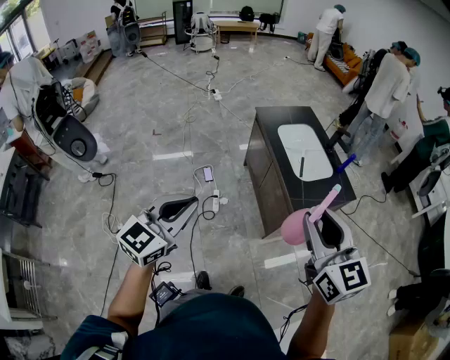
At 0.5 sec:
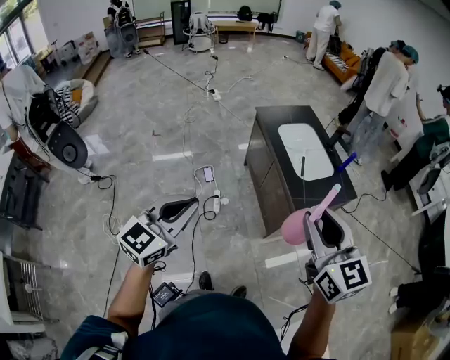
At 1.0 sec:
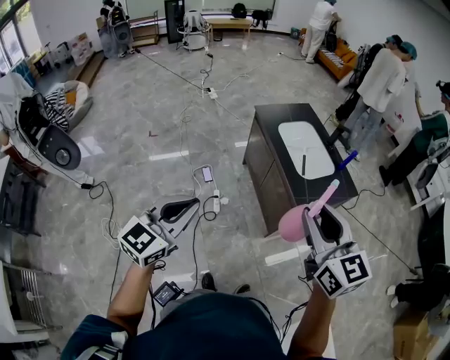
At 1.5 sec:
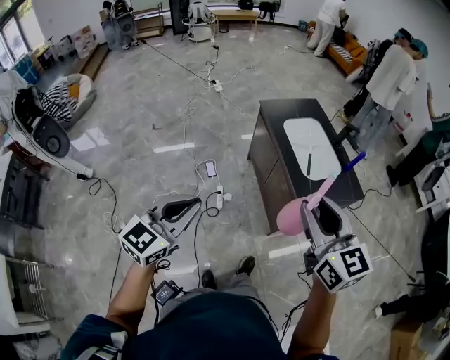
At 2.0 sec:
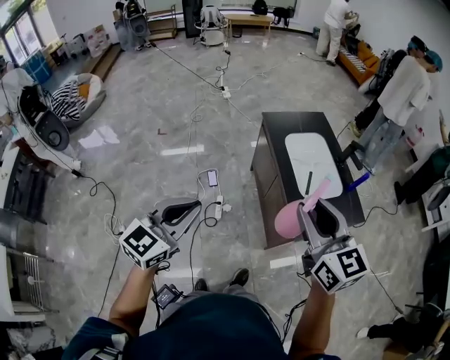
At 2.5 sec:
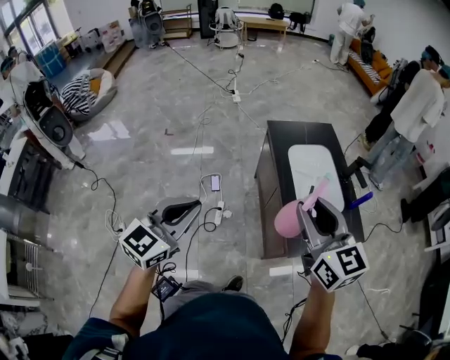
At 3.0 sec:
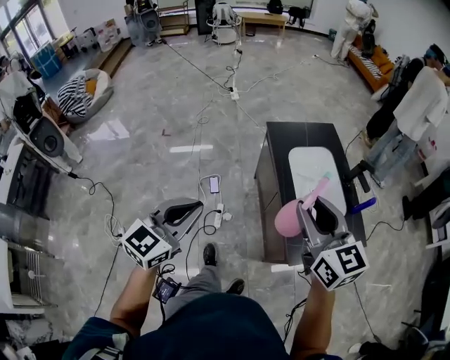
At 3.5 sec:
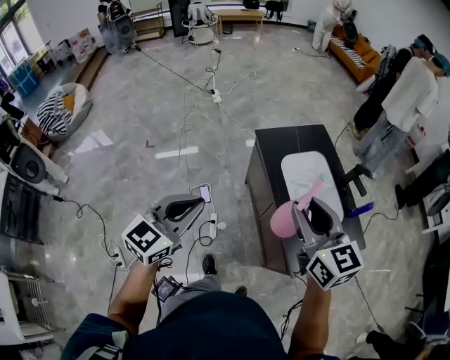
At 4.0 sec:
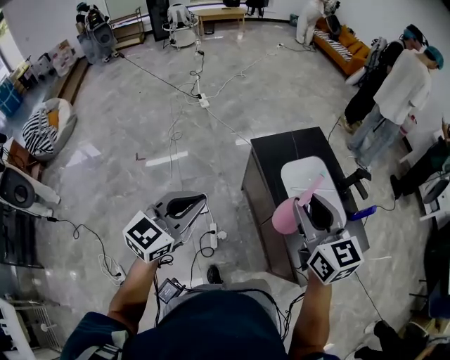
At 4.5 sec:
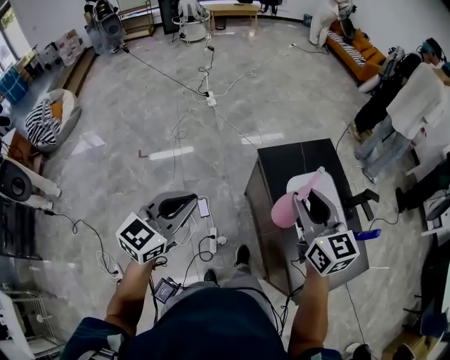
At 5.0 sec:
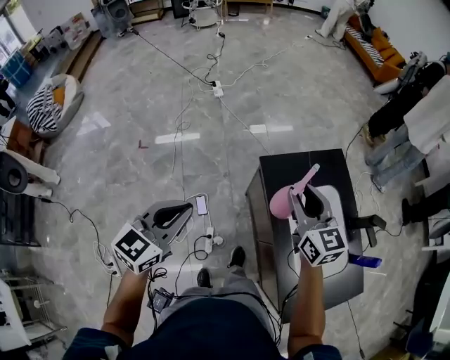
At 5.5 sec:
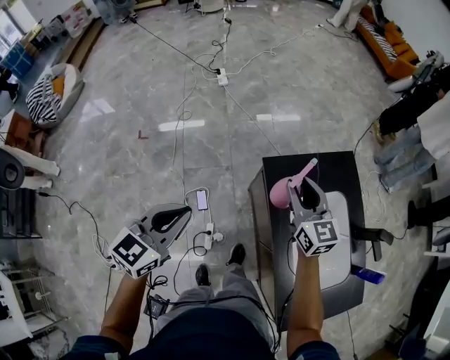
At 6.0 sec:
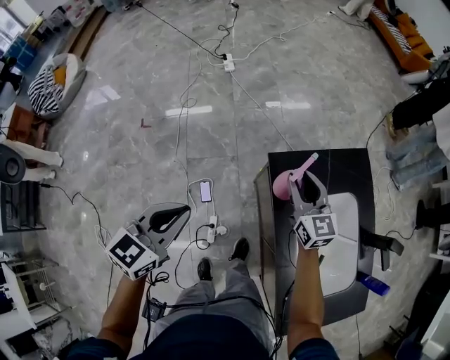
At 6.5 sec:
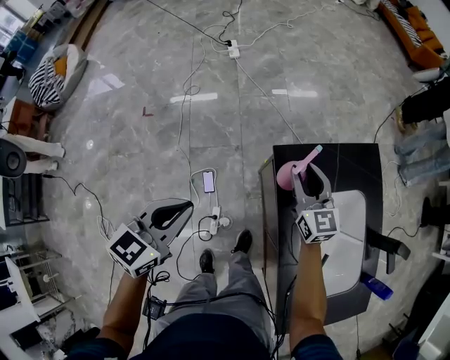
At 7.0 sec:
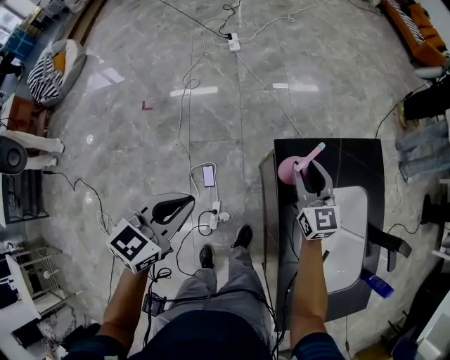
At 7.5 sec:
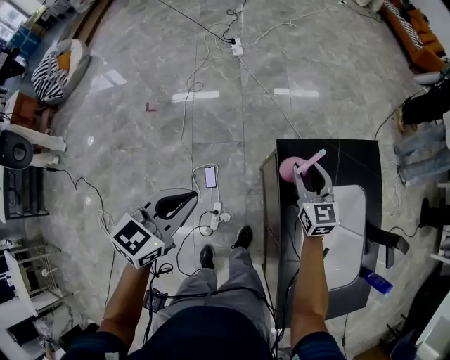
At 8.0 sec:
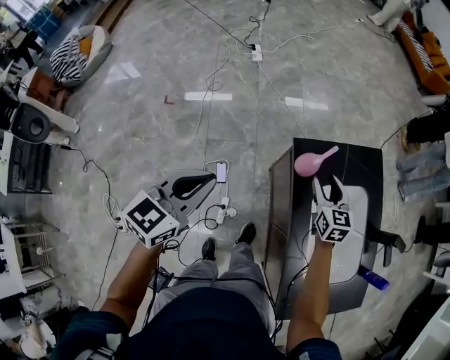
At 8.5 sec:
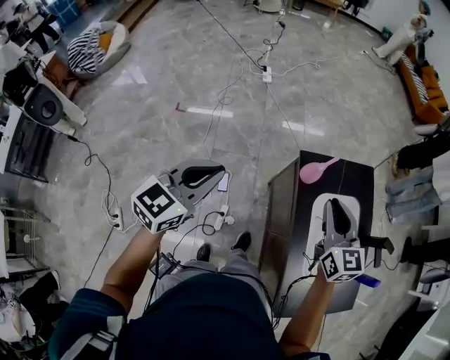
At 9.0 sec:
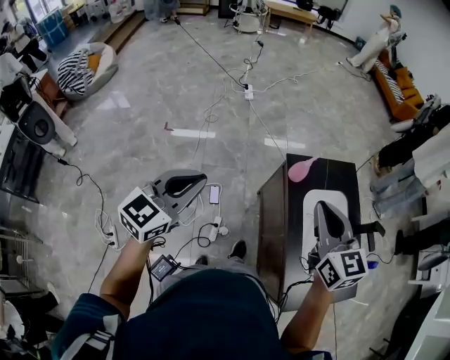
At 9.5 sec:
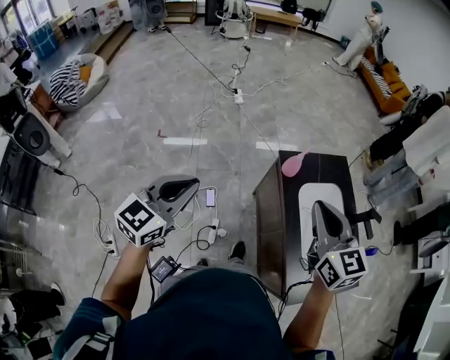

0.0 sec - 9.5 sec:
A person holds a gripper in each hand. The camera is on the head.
0.0 sec - 2.0 sec: The two grippers go about 15 cm forward.
2.0 sec - 4.0 sec: The two grippers go some 35 cm forward.
4.0 sec - 5.5 sec: The right gripper heads forward and downward, covering approximately 40 cm. The left gripper heads forward and downward, covering about 25 cm.
5.5 sec - 7.5 sec: The right gripper heads downward, covering some 15 cm. Meanwhile the left gripper travels downward by roughly 5 cm.
7.5 sec - 9.5 sec: The left gripper is displaced backward and upward by some 30 cm. The right gripper goes roughly 50 cm upward and backward, and closes up.

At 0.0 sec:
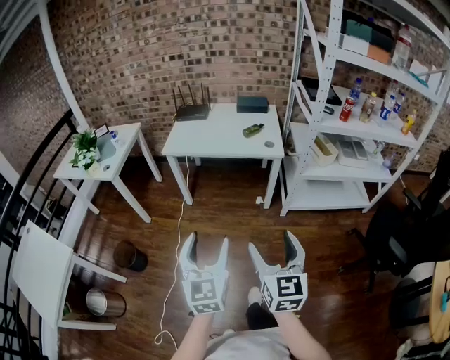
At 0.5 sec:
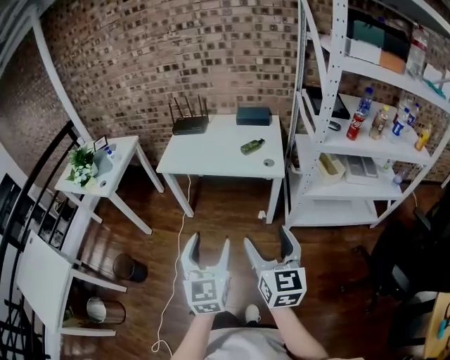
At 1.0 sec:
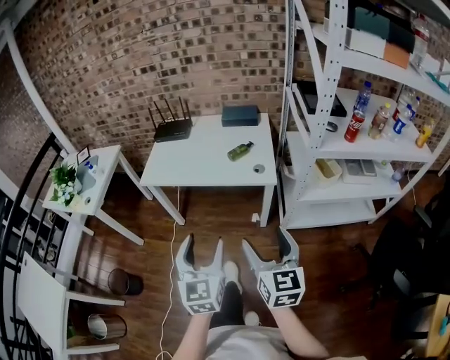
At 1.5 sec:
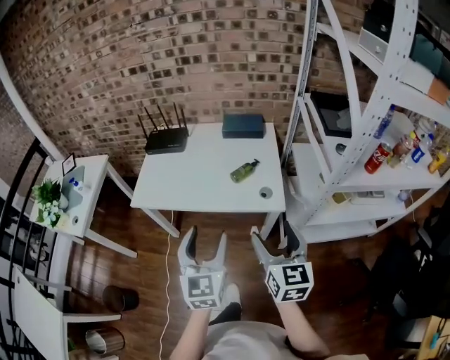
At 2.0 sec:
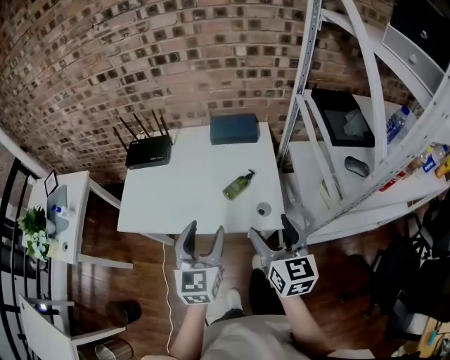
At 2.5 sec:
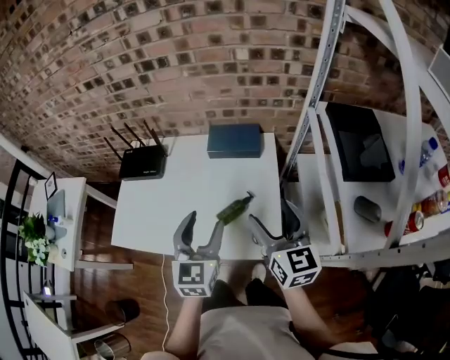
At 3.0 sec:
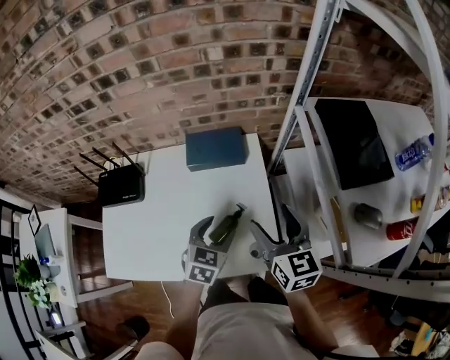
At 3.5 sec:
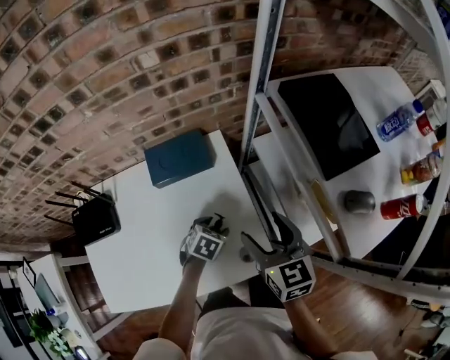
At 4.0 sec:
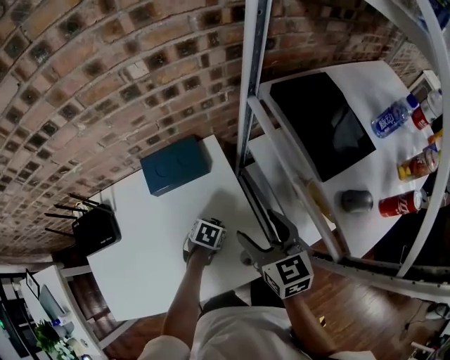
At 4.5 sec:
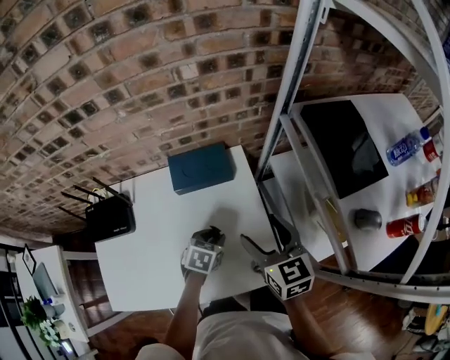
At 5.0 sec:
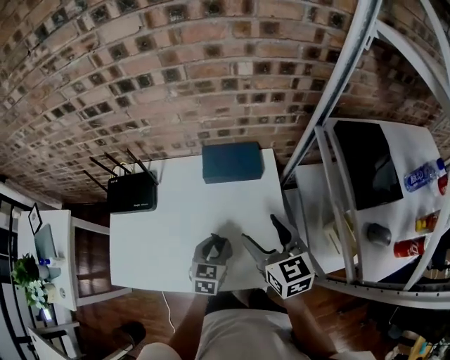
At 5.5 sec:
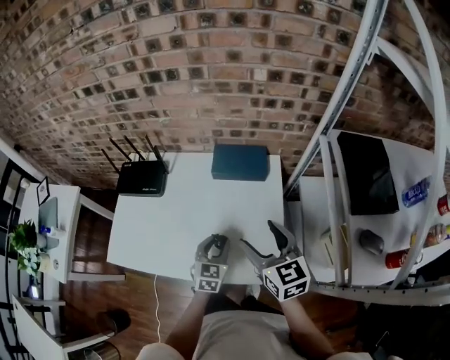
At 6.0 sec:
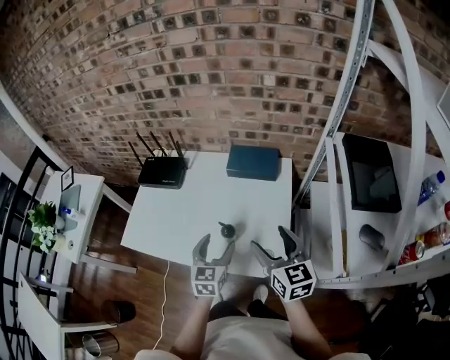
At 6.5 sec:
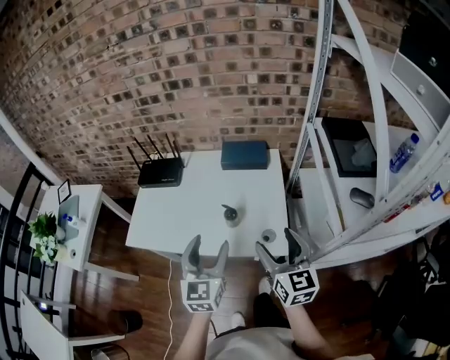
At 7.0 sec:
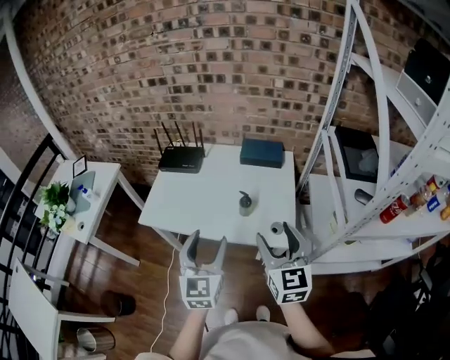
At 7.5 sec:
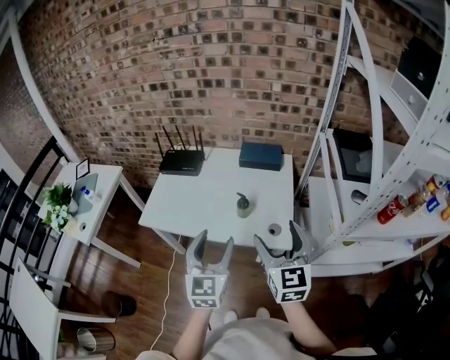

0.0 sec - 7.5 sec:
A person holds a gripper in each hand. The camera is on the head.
0.0 sec - 2.0 sec: Both grippers are carried forward, approximately 60 cm.
2.0 sec - 4.0 sec: The left gripper is displaced downward by approximately 30 cm, tilts its fingers some 60 degrees downward, and closes its fingers. Meanwhile the right gripper moves approximately 25 cm.
4.0 sec - 5.5 sec: The right gripper moves about 10 cm, and rotates some 30 degrees. The left gripper shifts by approximately 15 cm, and angles its fingers upward, by some 40 degrees.
5.5 sec - 7.5 sec: The left gripper shifts about 35 cm backward and upward, rotates some 30 degrees, and opens. Meanwhile the right gripper travels backward by some 25 cm.

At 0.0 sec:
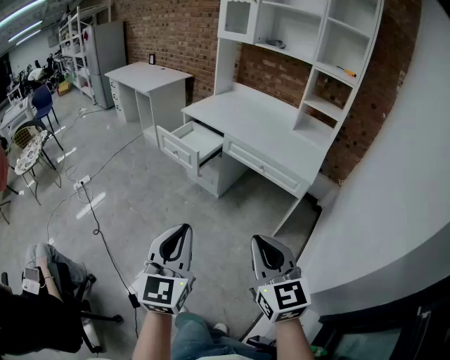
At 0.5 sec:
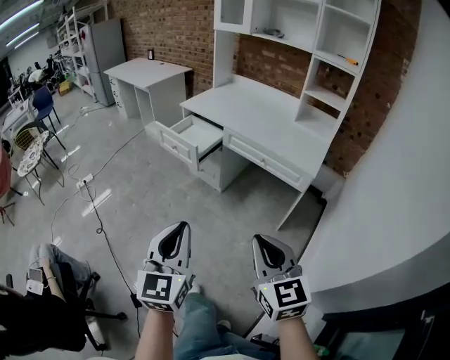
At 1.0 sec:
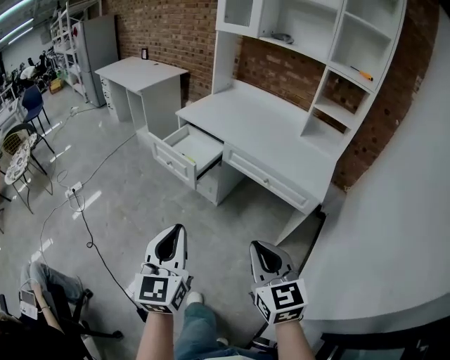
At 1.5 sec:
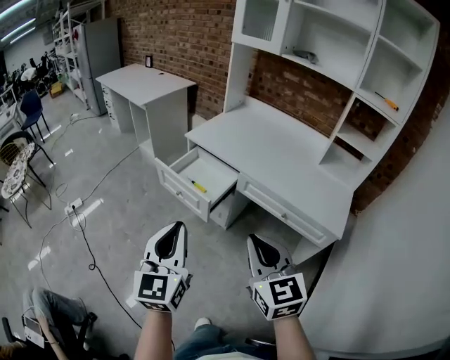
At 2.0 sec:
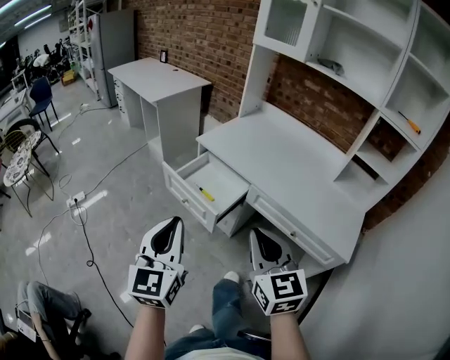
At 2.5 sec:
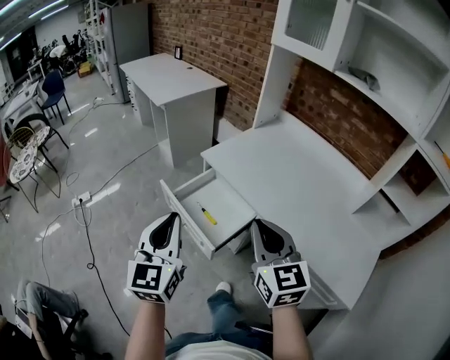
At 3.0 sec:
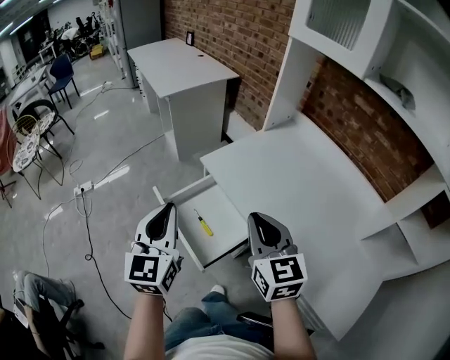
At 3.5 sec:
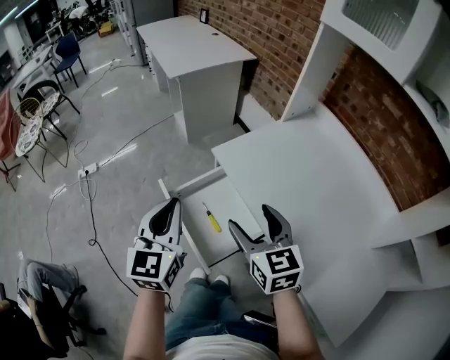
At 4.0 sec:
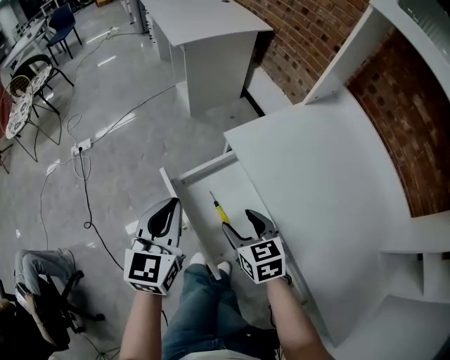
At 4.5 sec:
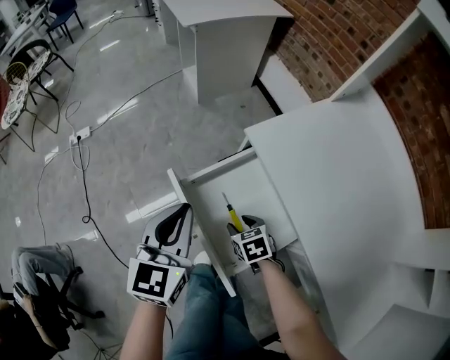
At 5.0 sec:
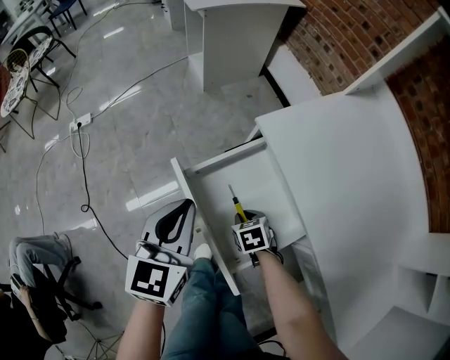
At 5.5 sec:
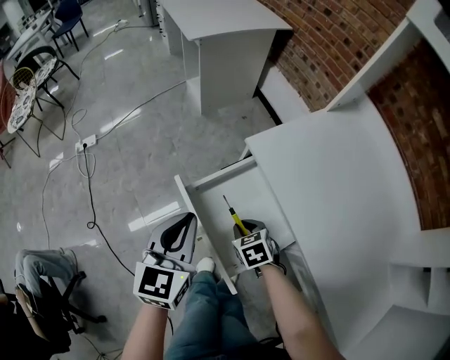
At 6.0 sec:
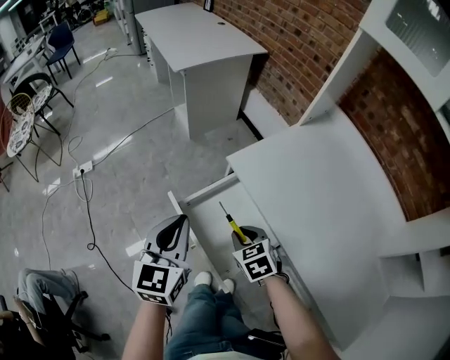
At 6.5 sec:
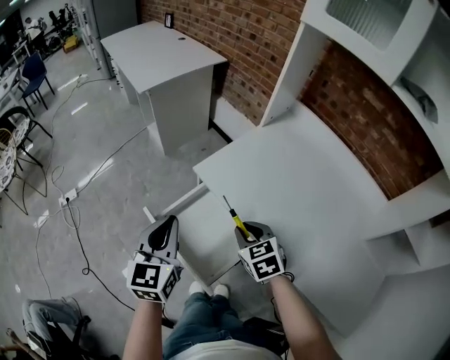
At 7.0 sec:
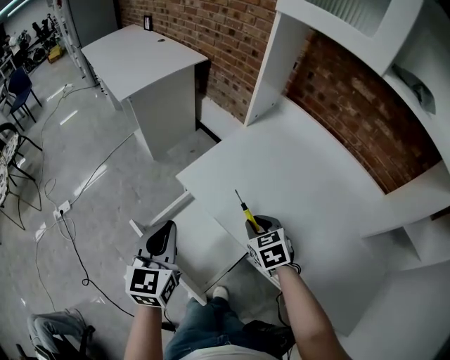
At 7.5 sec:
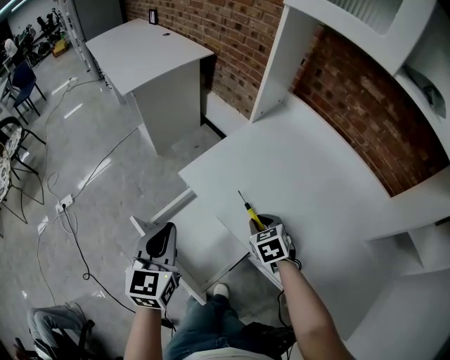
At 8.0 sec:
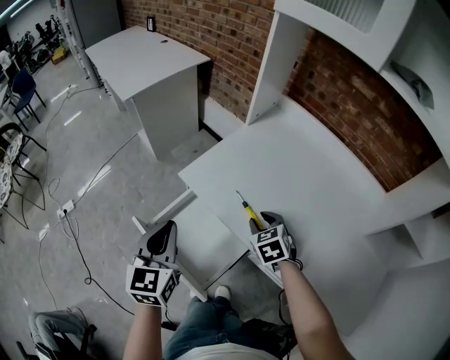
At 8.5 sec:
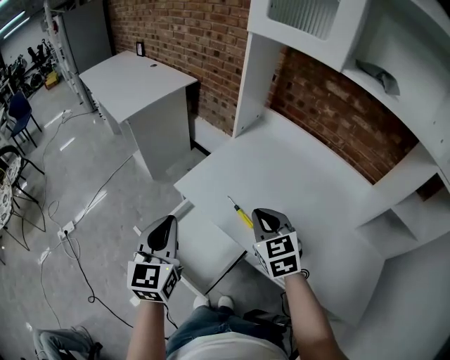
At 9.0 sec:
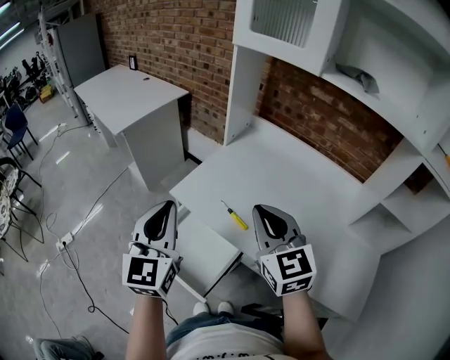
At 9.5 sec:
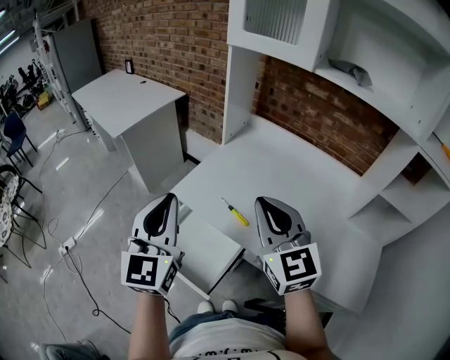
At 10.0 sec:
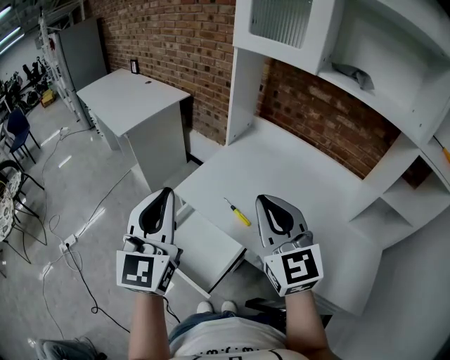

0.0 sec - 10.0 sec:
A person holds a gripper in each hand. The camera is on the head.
0.0 sec - 2.0 sec: The pair of grippers is taken forward, some 40 cm.
2.0 sec - 4.0 sec: Both grippers move forward and downward, about 40 cm. The left gripper swivels some 20 degrees; the right gripper turns by some 40 degrees, and opens.
4.0 sec - 6.0 sec: The right gripper goes downward and returns, about 25 cm each way, and closes up, while the left gripper moves roughly 10 cm downward and comes back.
6.0 sec - 8.0 sec: The right gripper is displaced to the right by about 20 cm; the left gripper heads to the right, covering approximately 10 cm.
8.0 sec - 10.0 sec: The left gripper shifts approximately 20 cm upward, and turns by approximately 30 degrees. Meanwhile the right gripper is displaced upward by about 30 cm, and tilts its fingers about 50 degrees upward.
